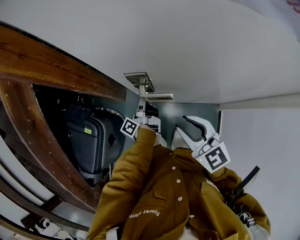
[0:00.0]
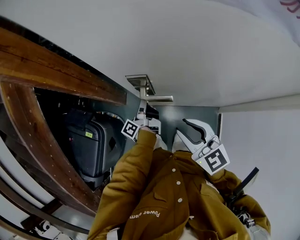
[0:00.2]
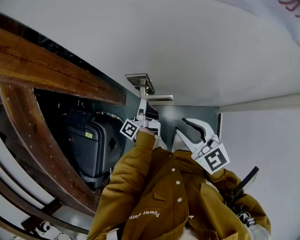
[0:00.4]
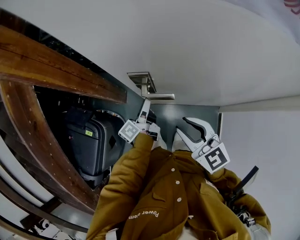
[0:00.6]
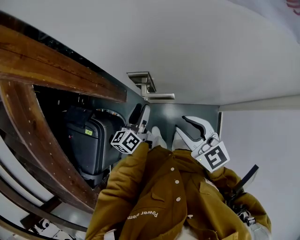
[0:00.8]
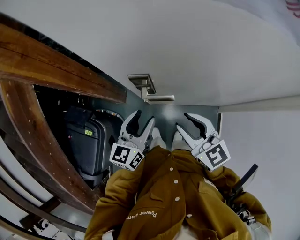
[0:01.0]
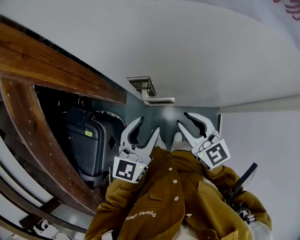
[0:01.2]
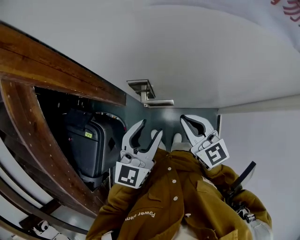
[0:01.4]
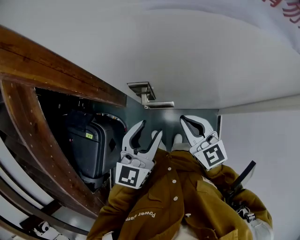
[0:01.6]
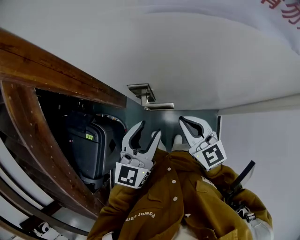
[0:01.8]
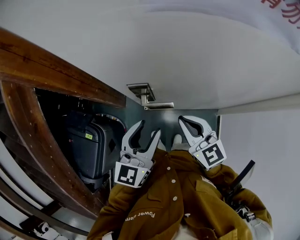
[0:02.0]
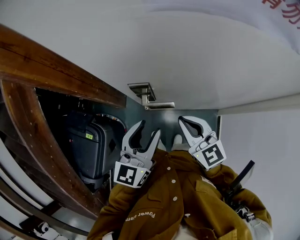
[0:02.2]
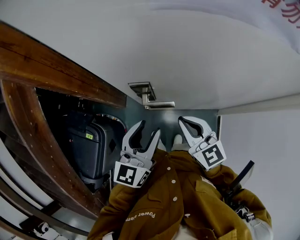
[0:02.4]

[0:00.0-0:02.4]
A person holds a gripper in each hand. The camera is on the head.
0:00.0 to 0:01.2: The left gripper travels upward and backward by about 20 cm, rolls clockwise, seen from behind, by some 90 degrees, and opens its fingers.
0:01.2 to 0:02.4: The right gripper closes.

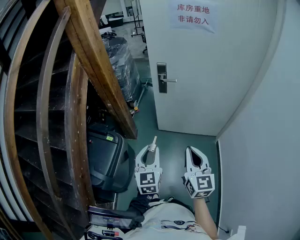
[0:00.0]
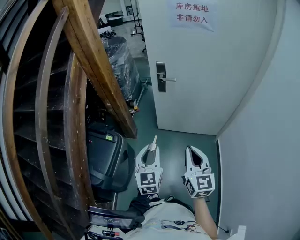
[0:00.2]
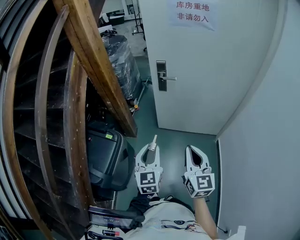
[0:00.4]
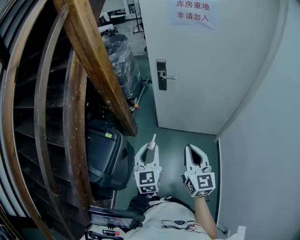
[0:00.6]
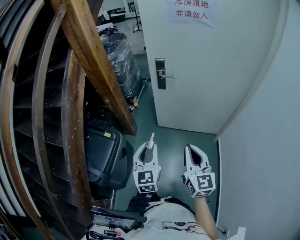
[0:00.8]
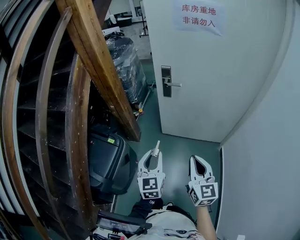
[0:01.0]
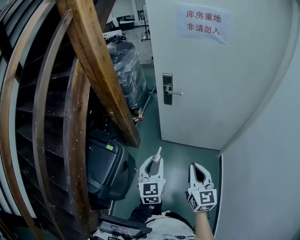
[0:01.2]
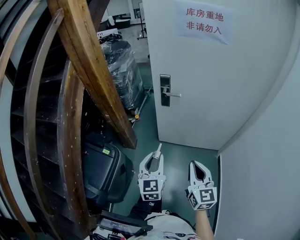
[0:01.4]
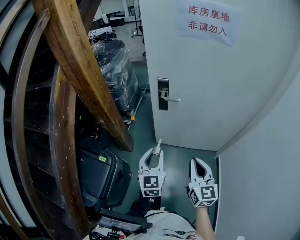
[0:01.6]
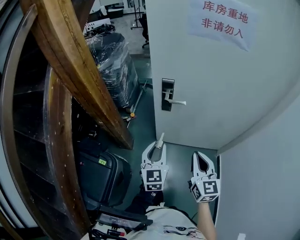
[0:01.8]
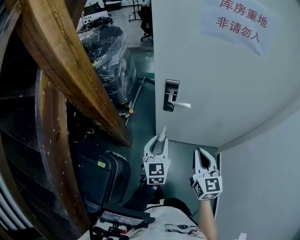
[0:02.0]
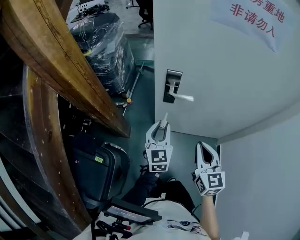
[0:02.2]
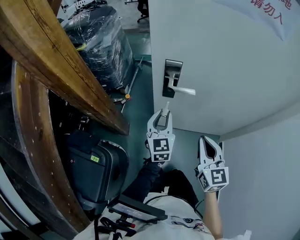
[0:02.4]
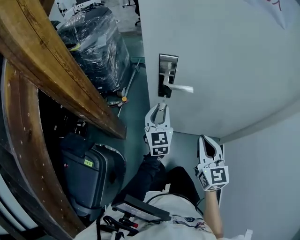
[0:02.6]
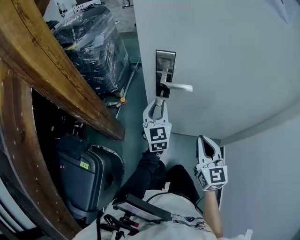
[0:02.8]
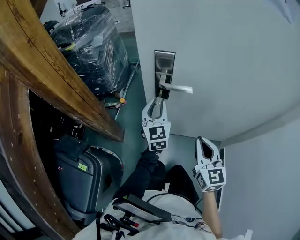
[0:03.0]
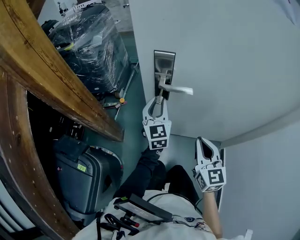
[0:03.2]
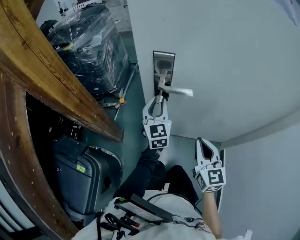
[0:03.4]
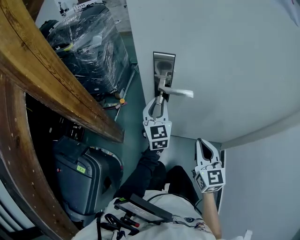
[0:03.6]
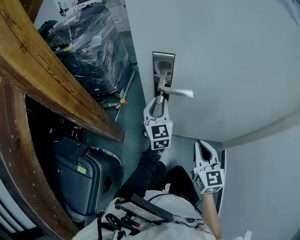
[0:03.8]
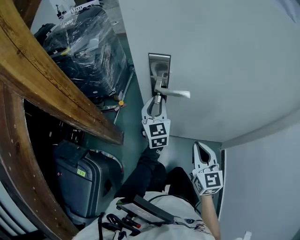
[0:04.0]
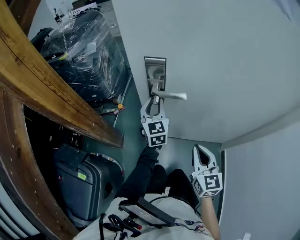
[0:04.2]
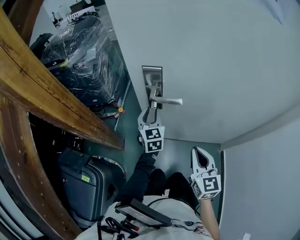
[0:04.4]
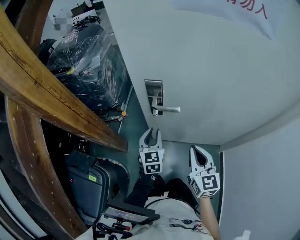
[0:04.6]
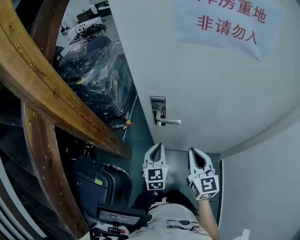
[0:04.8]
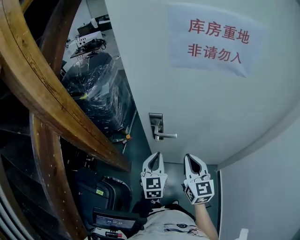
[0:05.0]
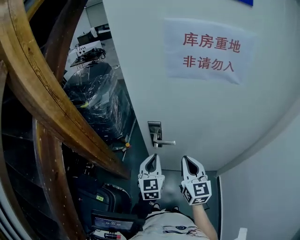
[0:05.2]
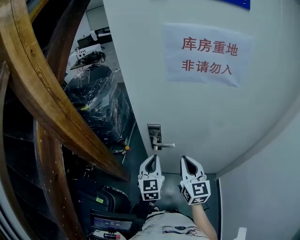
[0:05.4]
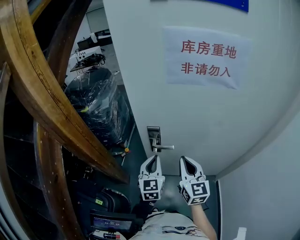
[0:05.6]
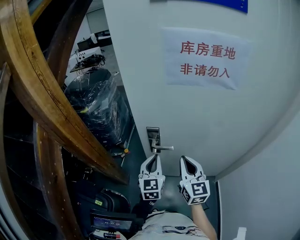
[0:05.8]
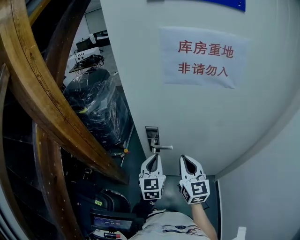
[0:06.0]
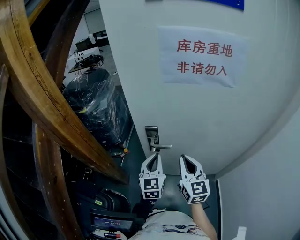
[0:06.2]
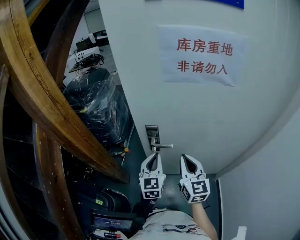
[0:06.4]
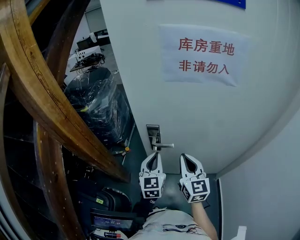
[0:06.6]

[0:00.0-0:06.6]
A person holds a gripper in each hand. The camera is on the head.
0:00.0 to 0:01.6: The grippers both shift forward by about 15 cm.
0:01.6 to 0:03.2: The grippers both shift forward and downward by roughly 35 cm.
0:03.2 to 0:05.0: The right gripper moves upward, approximately 20 cm; the left gripper travels upward and backward by some 20 cm, and closes up.
0:05.0 to 0:06.6: The left gripper goes roughly 5 cm upward.

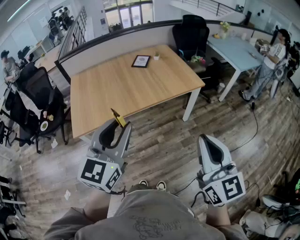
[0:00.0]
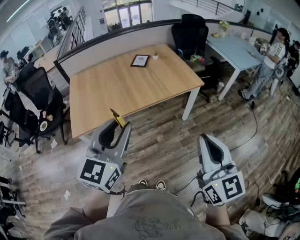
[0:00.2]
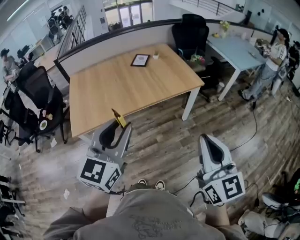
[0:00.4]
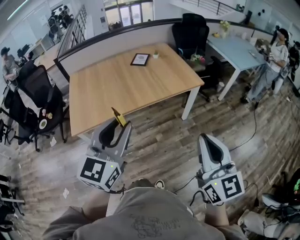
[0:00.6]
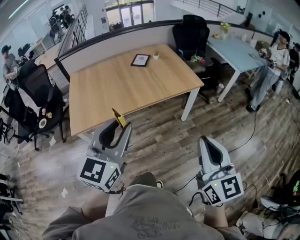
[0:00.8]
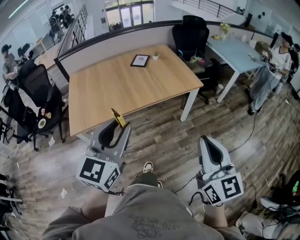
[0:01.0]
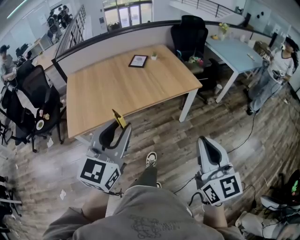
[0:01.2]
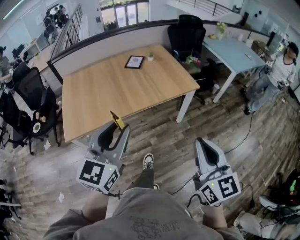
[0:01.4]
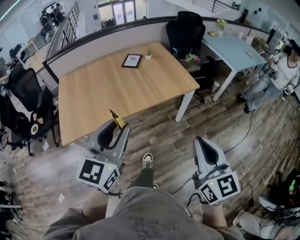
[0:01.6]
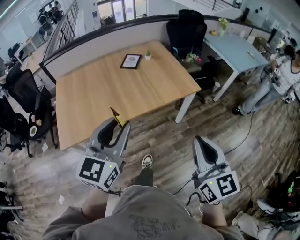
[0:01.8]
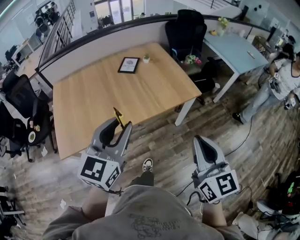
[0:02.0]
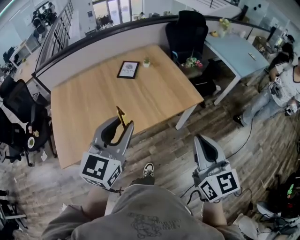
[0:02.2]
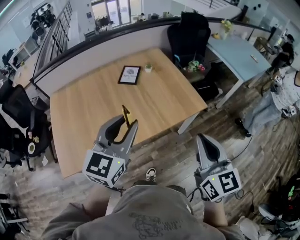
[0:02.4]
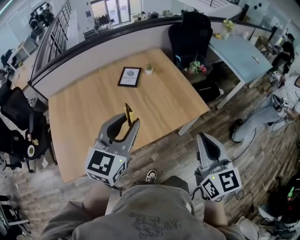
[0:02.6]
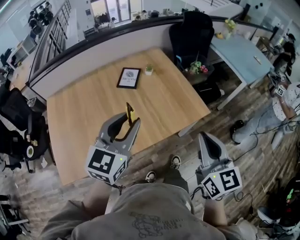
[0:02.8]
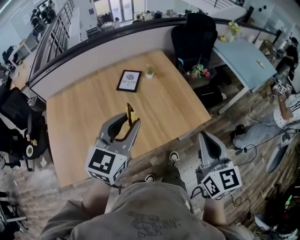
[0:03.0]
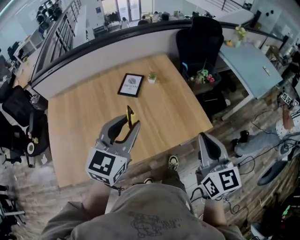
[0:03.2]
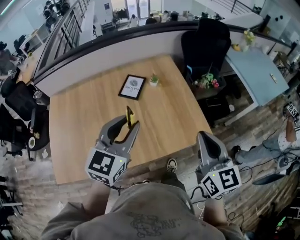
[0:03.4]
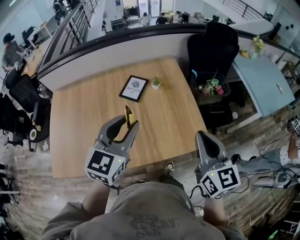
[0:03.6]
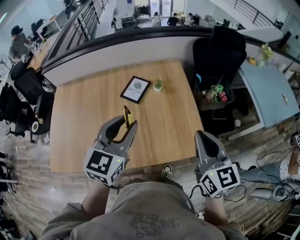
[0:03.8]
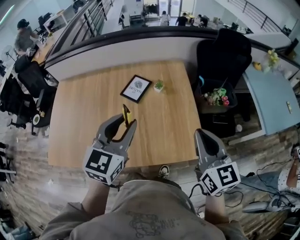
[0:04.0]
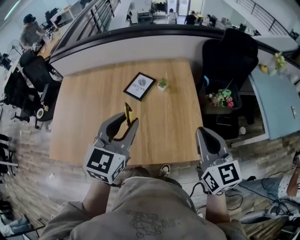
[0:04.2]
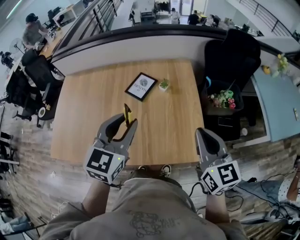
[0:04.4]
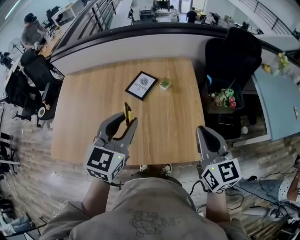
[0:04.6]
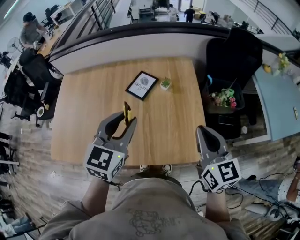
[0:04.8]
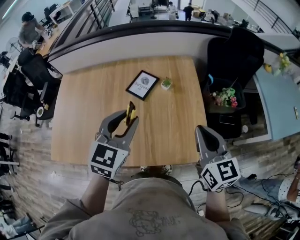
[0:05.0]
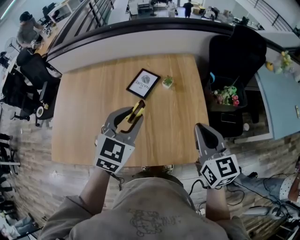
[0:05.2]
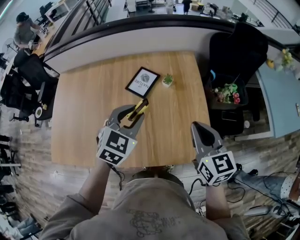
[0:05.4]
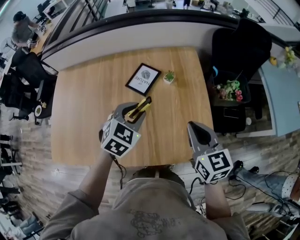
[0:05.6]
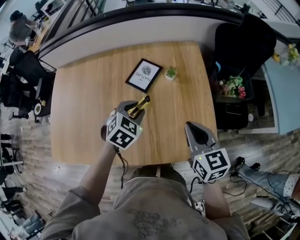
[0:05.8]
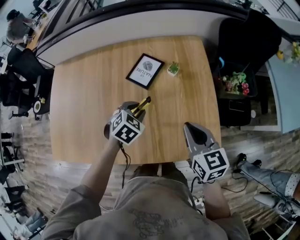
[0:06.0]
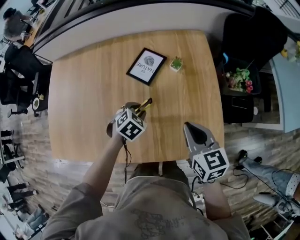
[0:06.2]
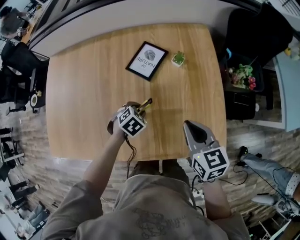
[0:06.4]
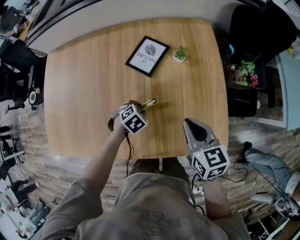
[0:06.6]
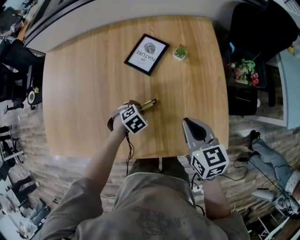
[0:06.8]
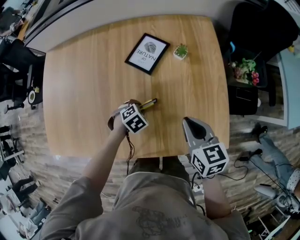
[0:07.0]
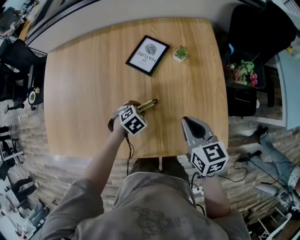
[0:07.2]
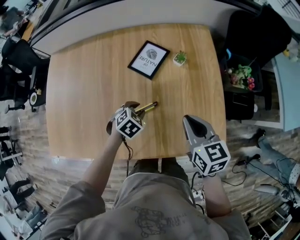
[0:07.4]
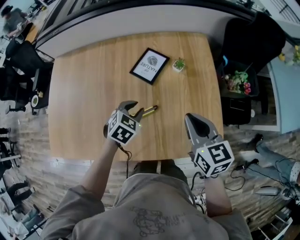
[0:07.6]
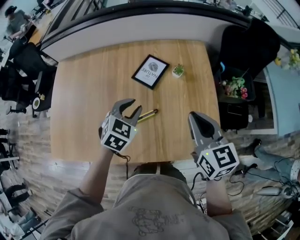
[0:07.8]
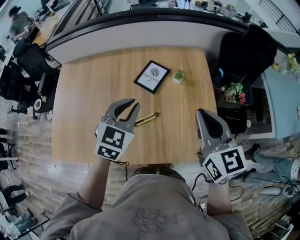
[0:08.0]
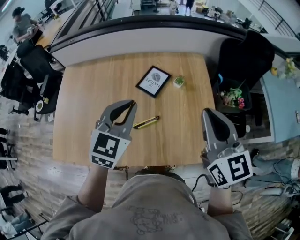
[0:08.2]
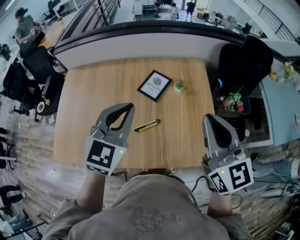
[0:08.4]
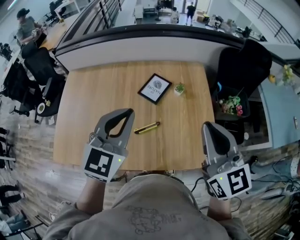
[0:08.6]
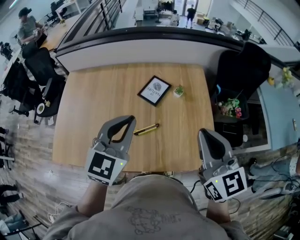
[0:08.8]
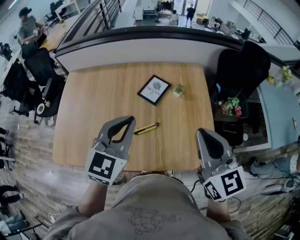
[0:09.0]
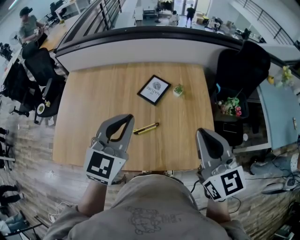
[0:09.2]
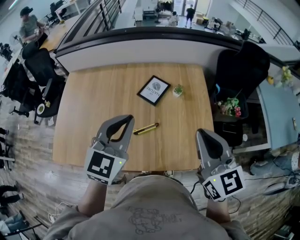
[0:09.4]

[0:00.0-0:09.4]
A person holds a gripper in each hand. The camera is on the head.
0:00.0 to 0:01.6: Both grippers move forward, some 10 cm.
0:01.6 to 0:03.2: The two grippers travel together, forward, about 40 cm.
0:03.2 to 0:04.8: The left gripper shifts approximately 15 cm forward and to the right, and swivels some 20 degrees. The right gripper shifts some 25 cm forward and to the right, and changes its angle by some 20 degrees.
0:04.8 to 0:06.2: The right gripper moves downward, to the left and forward, some 20 cm, and changes its angle by about 20 degrees; the left gripper is displaced downward by about 30 cm, and tips its fingers downward by approximately 50 degrees.
0:06.2 to 0:07.8: The grippers both shift upward by about 10 cm. The left gripper rotates approximately 20 degrees.
0:07.8 to 0:09.4: The right gripper heads upward and backward, covering about 15 cm, while the left gripper shifts some 20 cm upward and backward, turns by some 30 degrees, and closes its fingers.

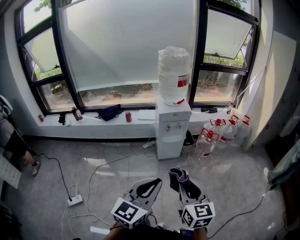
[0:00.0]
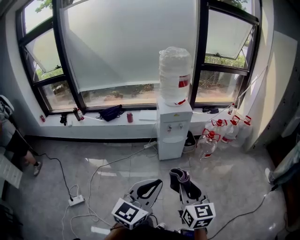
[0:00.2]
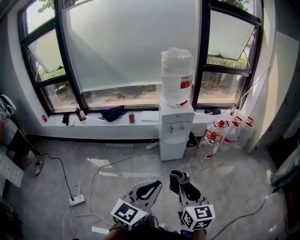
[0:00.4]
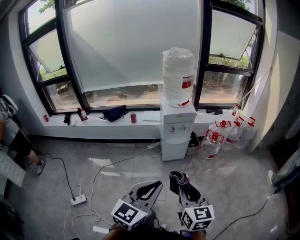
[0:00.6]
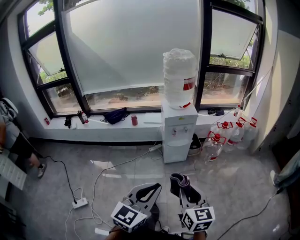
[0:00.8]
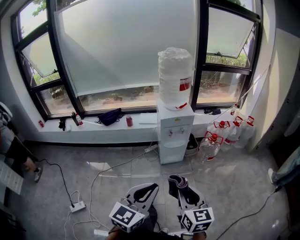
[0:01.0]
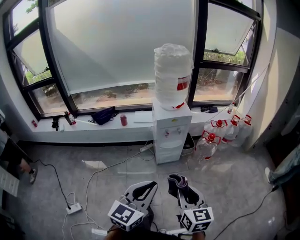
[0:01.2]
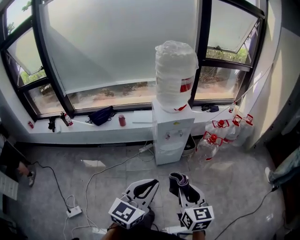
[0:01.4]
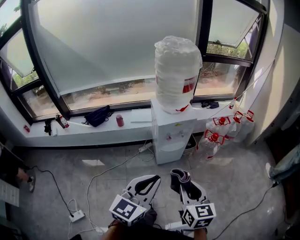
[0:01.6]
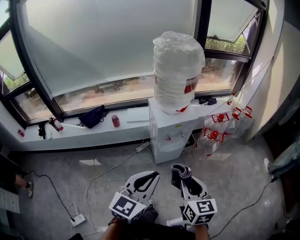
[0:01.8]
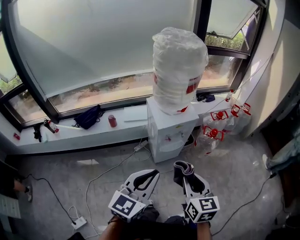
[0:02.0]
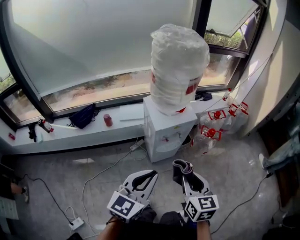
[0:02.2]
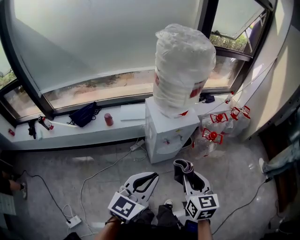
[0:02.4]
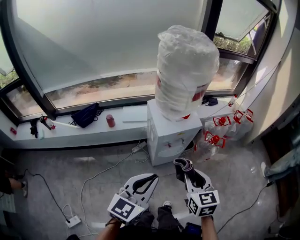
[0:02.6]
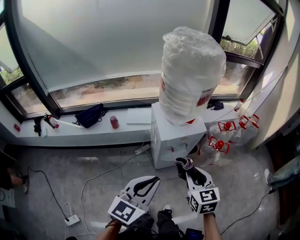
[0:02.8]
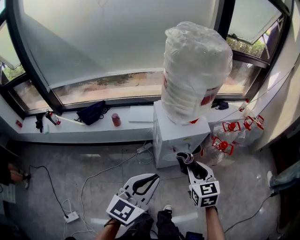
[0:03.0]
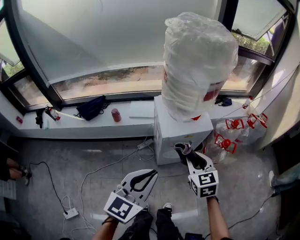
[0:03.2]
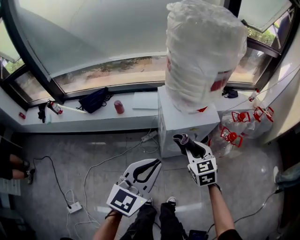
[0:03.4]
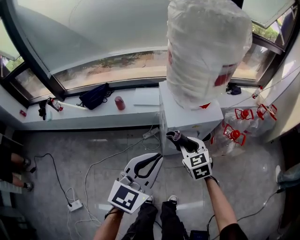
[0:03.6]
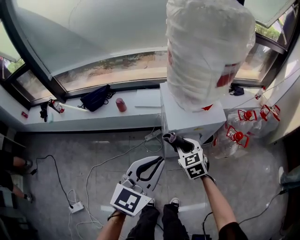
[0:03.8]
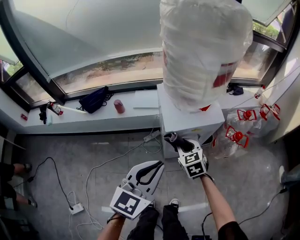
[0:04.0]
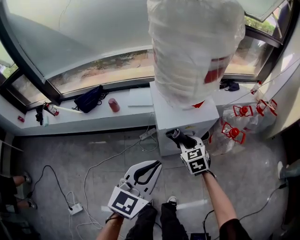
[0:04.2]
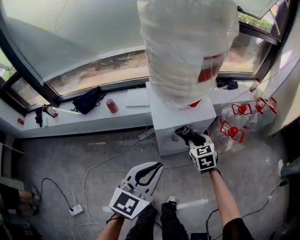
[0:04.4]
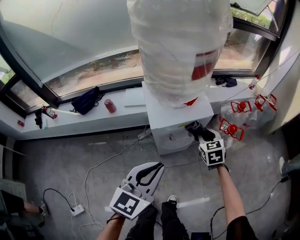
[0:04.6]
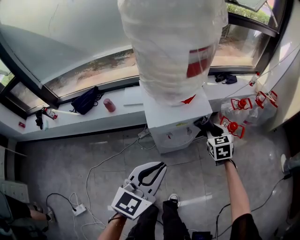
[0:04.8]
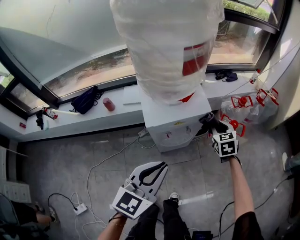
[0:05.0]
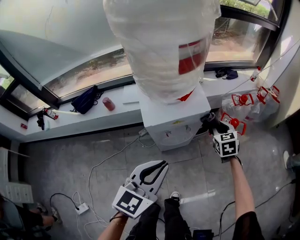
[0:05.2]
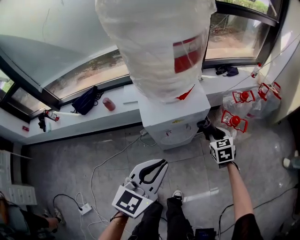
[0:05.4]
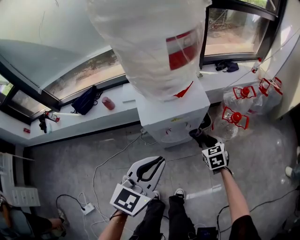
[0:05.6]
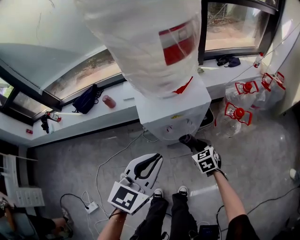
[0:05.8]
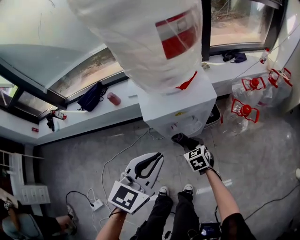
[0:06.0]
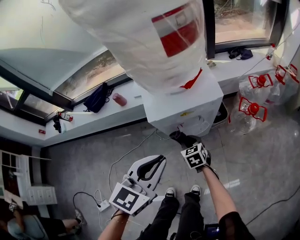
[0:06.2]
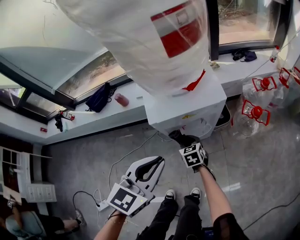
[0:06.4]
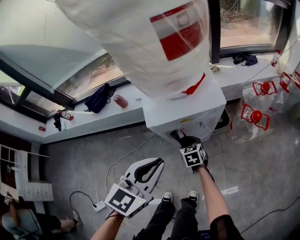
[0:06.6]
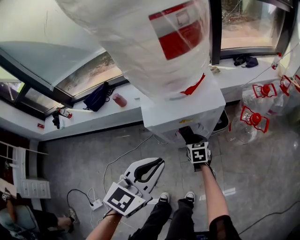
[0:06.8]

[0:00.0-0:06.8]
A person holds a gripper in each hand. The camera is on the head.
0:00.0 to 0:01.4: The grippers both shift forward by about 20 cm.
0:01.4 to 0:02.8: The left gripper shifts some 25 cm forward and to the left; the right gripper goes some 30 cm forward.
0:02.8 to 0:04.0: The left gripper goes about 15 cm forward and downward; the right gripper shifts about 25 cm downward and forward, and changes its angle by about 20 degrees.
0:04.0 to 0:05.4: The left gripper goes roughly 10 cm to the right. Meanwhile the right gripper travels to the right by roughly 25 cm.
0:05.4 to 0:06.8: The right gripper heads downward and to the left, covering roughly 25 cm. Meanwhile the left gripper moves downward, about 5 cm.
